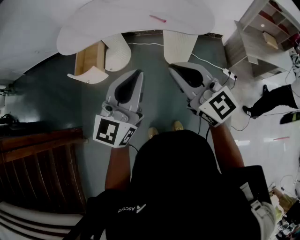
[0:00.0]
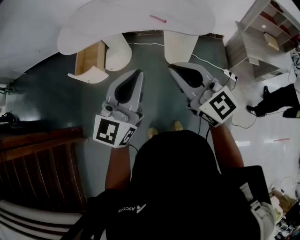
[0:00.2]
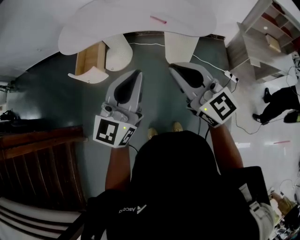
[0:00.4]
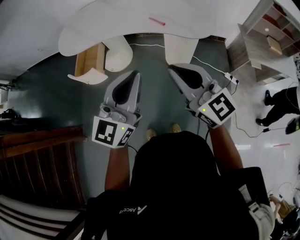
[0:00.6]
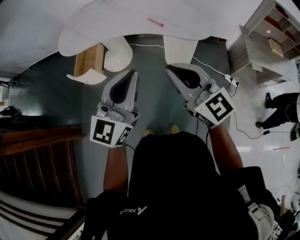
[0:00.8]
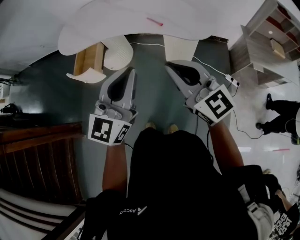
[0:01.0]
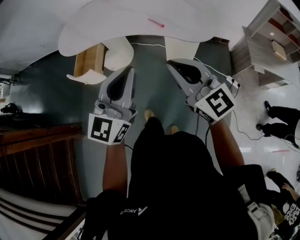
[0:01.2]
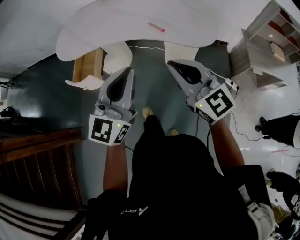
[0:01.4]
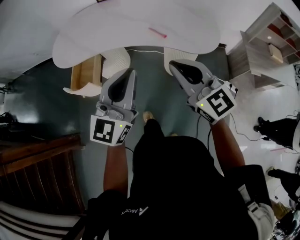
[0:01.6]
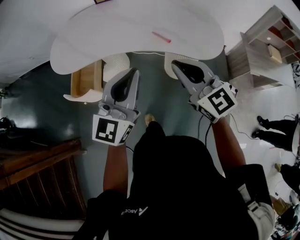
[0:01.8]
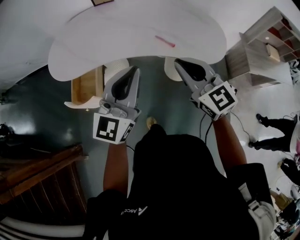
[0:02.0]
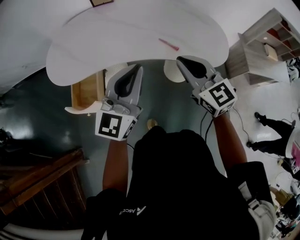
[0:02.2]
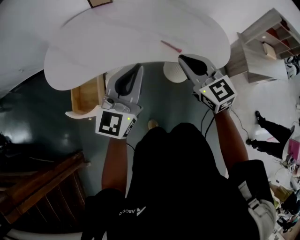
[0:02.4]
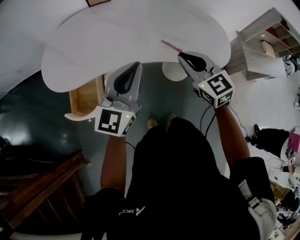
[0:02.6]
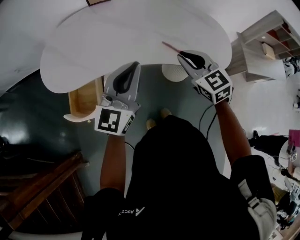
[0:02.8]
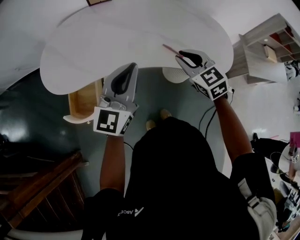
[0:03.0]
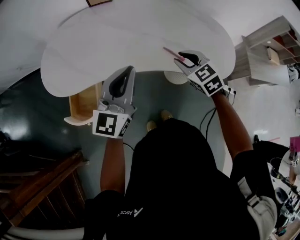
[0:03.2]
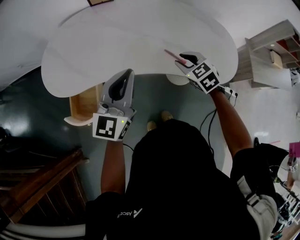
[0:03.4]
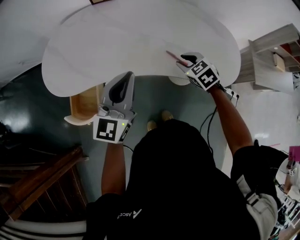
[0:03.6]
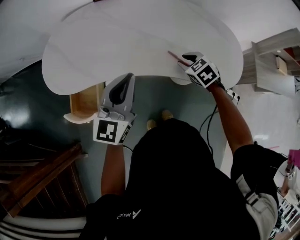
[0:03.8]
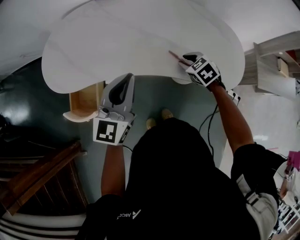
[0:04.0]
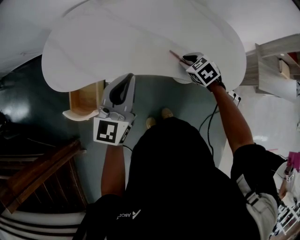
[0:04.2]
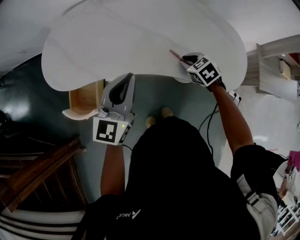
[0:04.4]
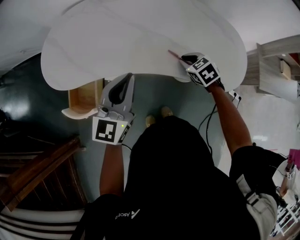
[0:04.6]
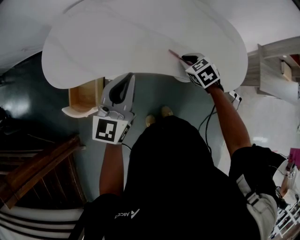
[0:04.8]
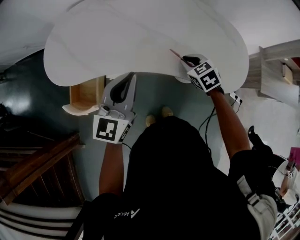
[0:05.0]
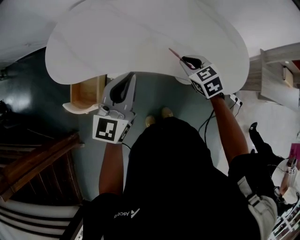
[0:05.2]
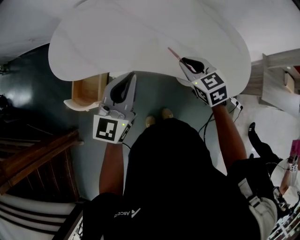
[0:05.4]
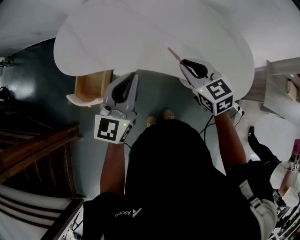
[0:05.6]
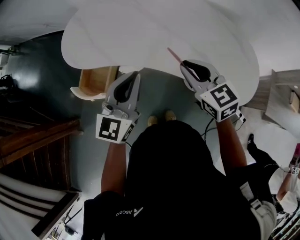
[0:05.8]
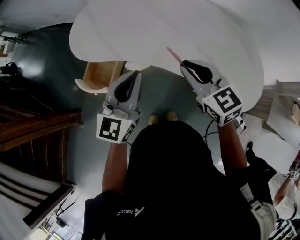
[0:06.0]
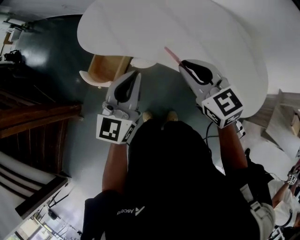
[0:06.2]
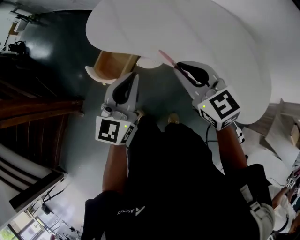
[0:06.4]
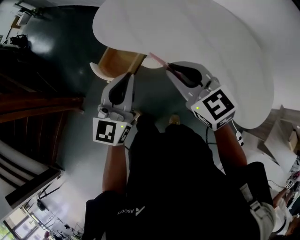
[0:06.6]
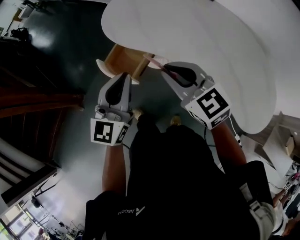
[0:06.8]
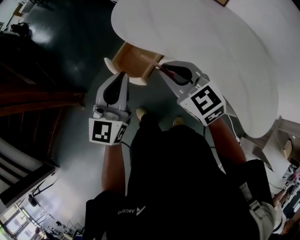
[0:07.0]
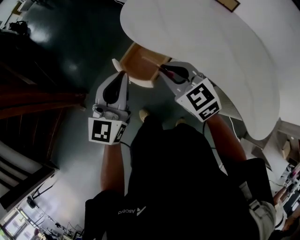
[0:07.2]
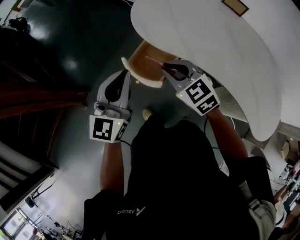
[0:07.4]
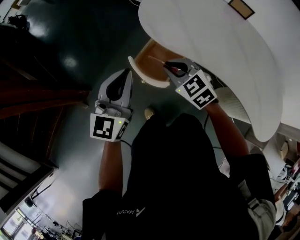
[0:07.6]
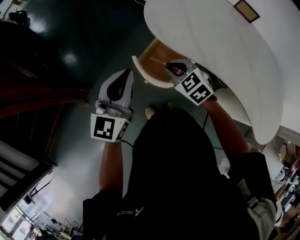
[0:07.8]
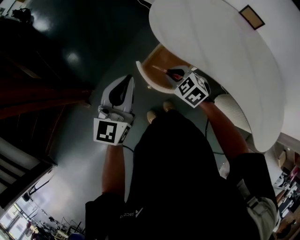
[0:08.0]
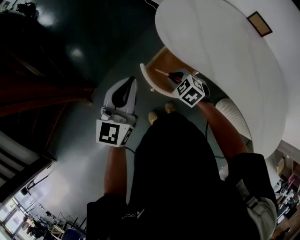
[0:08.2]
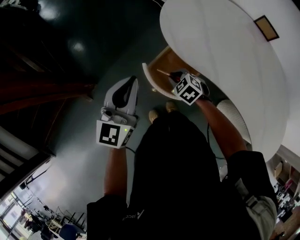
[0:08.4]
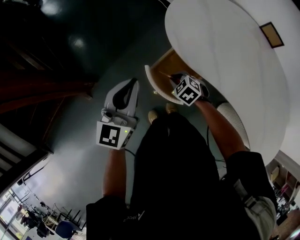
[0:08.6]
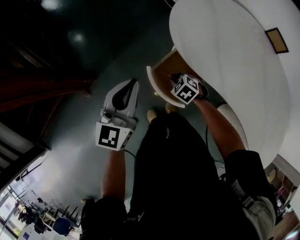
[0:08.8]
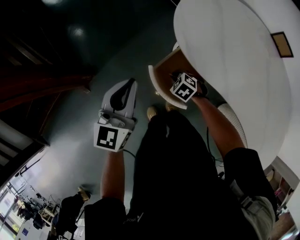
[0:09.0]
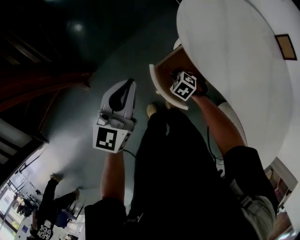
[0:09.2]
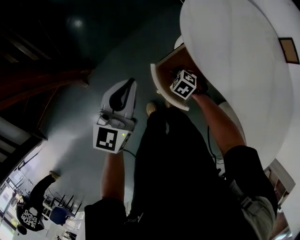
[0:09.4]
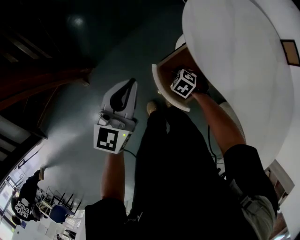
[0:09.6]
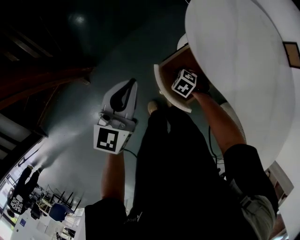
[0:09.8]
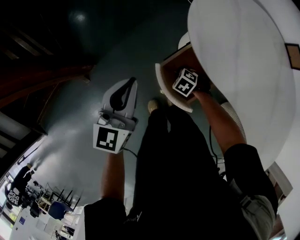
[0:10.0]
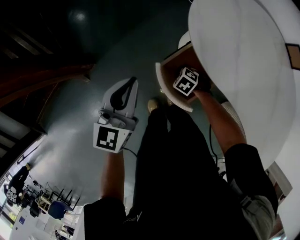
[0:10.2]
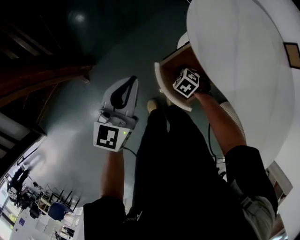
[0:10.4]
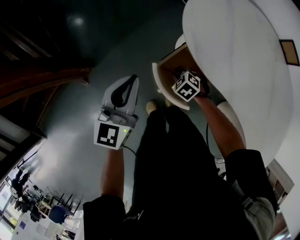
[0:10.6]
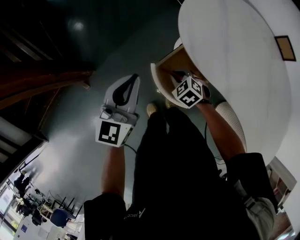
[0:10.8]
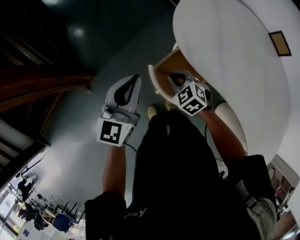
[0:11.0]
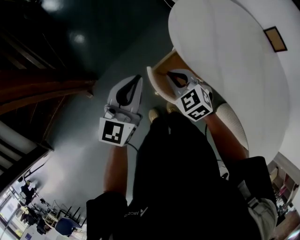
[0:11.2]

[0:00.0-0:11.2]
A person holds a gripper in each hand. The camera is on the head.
0:00.0 to 0:01.6: The grippers both shift forward by roughly 15 cm.
0:01.6 to 0:03.2: The left gripper goes roughly 25 cm forward and to the left. Meanwhile the right gripper moves forward and downward, roughly 35 cm, points its fingers approximately 40 degrees further downward, and opens.
0:03.2 to 0:04.8: The right gripper travels downward and forward by roughly 10 cm.
0:04.8 to 0:06.4: The left gripper ends up approximately 10 cm from where it was, and turns by some 30 degrees. The right gripper moves upward, approximately 20 cm, and angles its fingers upward, by about 40 degrees.
0:06.4 to 0:08.0: The two grippers travel together, to the left and forward, some 40 cm. The right gripper shifts about 20 cm downward, and tilts its fingers some 30 degrees downward.
0:08.0 to 0:09.6: The right gripper shifts about 20 cm downward, and swivels approximately 30 degrees. The left gripper goes some 10 cm forward and downward.
0:09.6 to 0:11.2: The right gripper moves upward, roughly 25 cm, and tips its fingers upward by about 30 degrees; the left gripper goes approximately 5 cm upward.

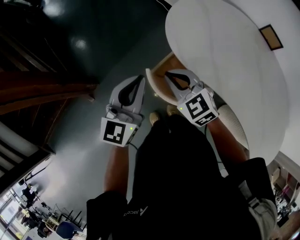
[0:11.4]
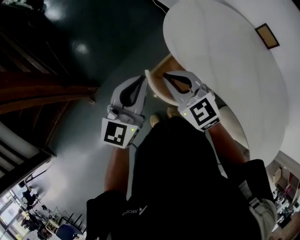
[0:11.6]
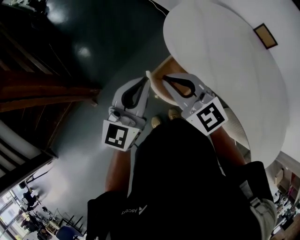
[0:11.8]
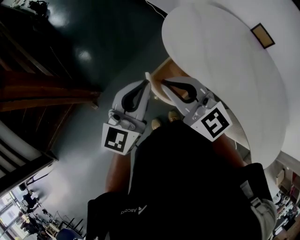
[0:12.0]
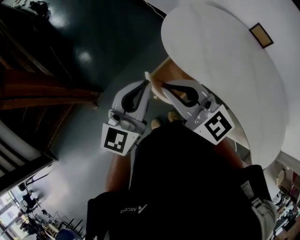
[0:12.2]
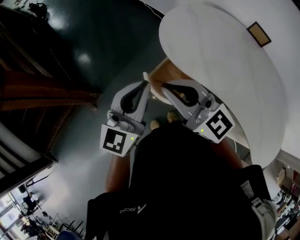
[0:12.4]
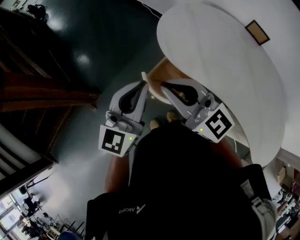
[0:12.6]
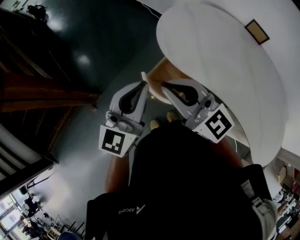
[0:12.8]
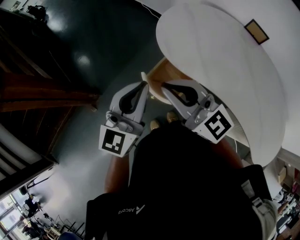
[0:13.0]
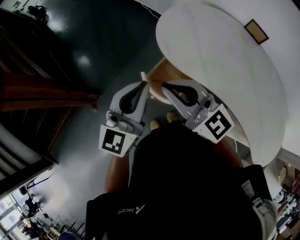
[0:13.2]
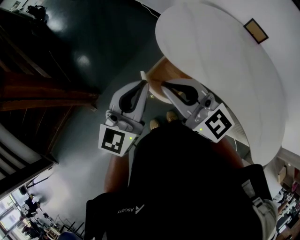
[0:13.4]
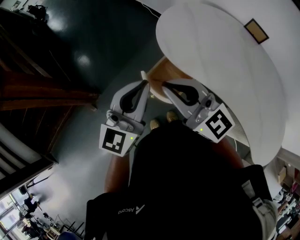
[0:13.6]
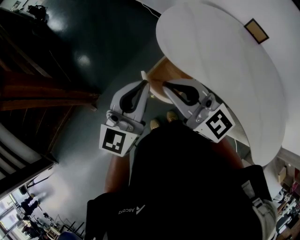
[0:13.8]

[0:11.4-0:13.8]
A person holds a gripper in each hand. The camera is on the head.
0:11.4 to 0:12.6: The left gripper is displaced upward and backward by some 10 cm, while the right gripper is displaced upward and backward by some 20 cm, and angles its fingers upward, by approximately 40 degrees.
0:12.6 to 0:13.8: The two grippers keep their place.

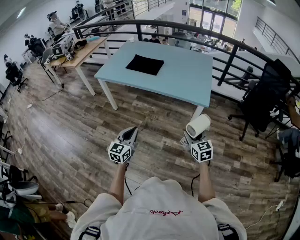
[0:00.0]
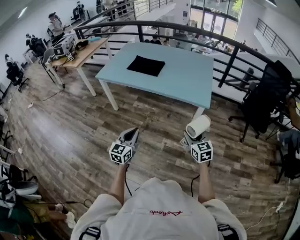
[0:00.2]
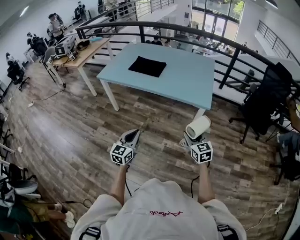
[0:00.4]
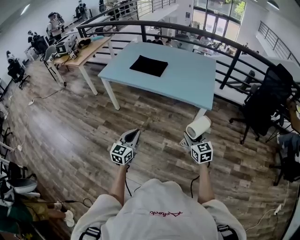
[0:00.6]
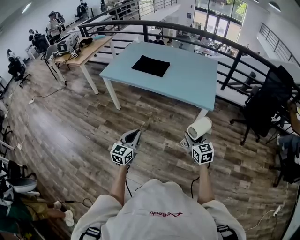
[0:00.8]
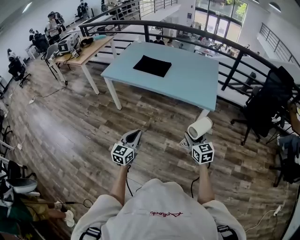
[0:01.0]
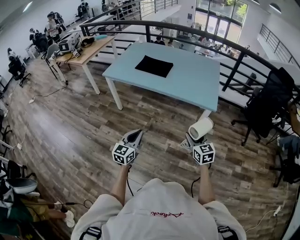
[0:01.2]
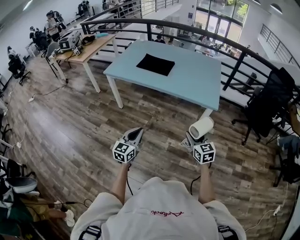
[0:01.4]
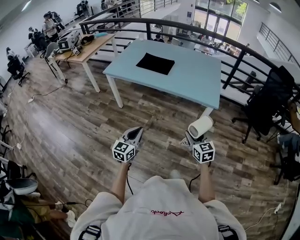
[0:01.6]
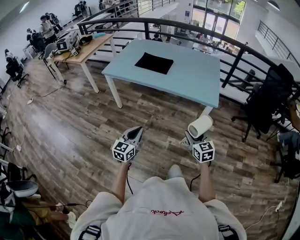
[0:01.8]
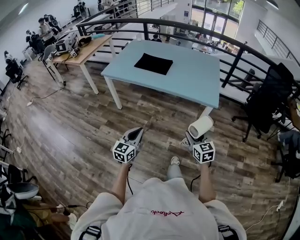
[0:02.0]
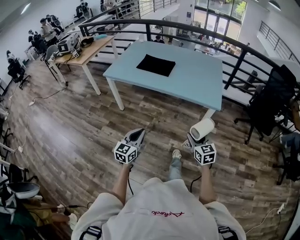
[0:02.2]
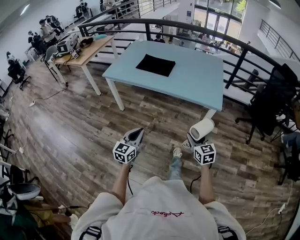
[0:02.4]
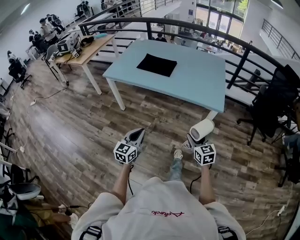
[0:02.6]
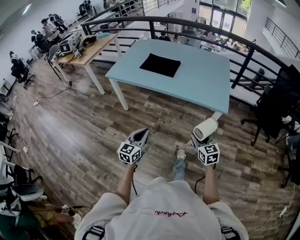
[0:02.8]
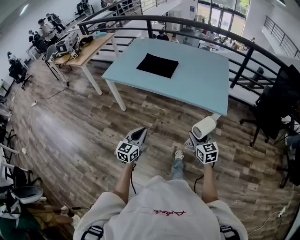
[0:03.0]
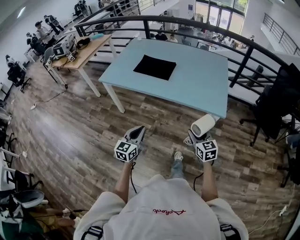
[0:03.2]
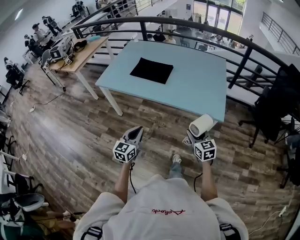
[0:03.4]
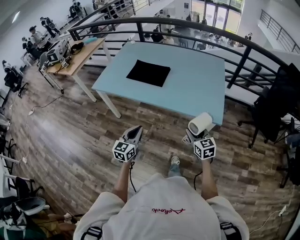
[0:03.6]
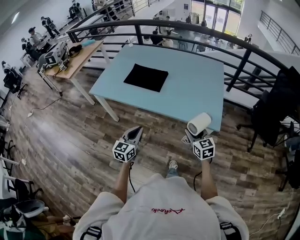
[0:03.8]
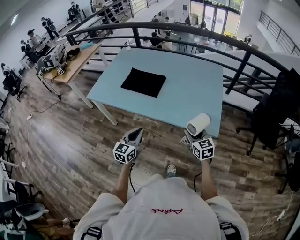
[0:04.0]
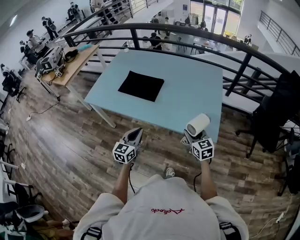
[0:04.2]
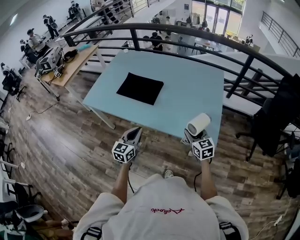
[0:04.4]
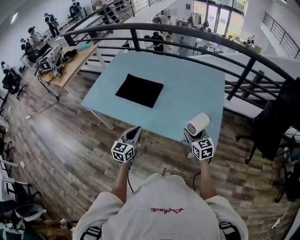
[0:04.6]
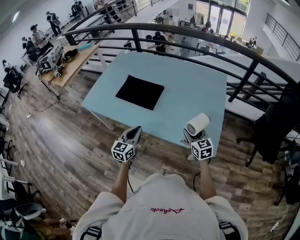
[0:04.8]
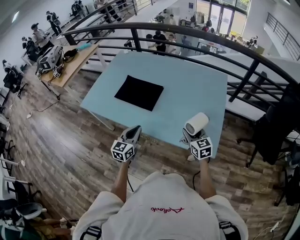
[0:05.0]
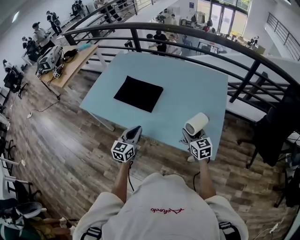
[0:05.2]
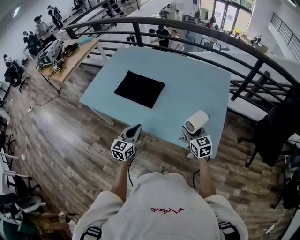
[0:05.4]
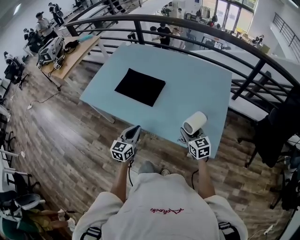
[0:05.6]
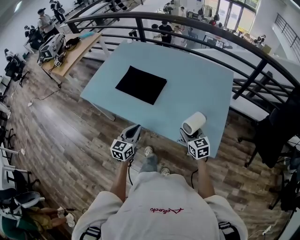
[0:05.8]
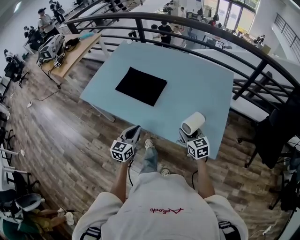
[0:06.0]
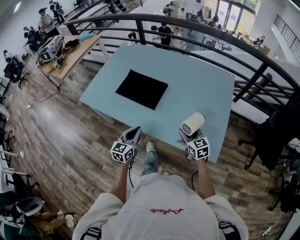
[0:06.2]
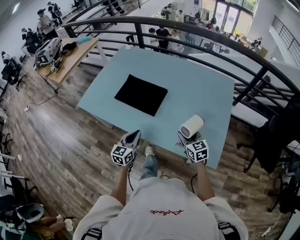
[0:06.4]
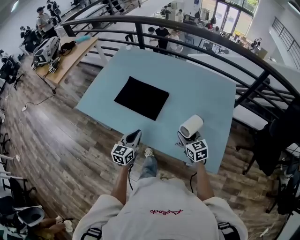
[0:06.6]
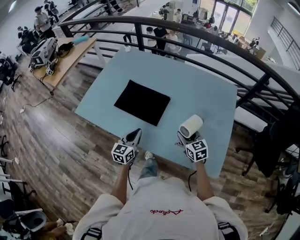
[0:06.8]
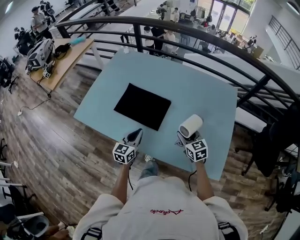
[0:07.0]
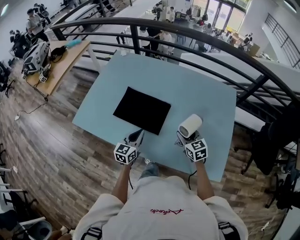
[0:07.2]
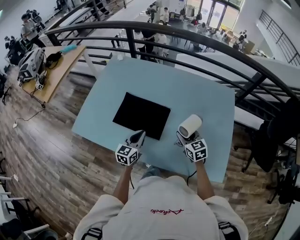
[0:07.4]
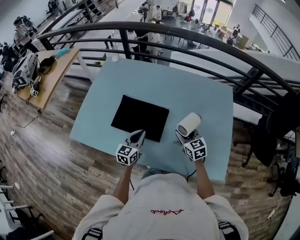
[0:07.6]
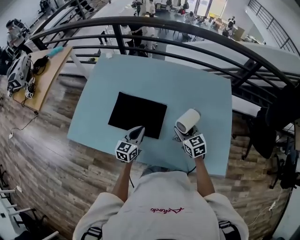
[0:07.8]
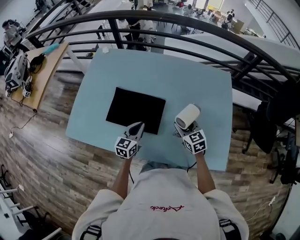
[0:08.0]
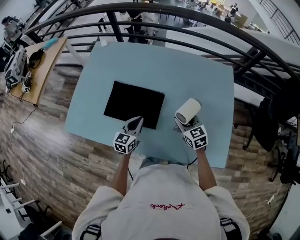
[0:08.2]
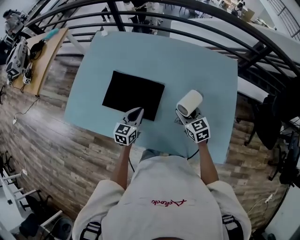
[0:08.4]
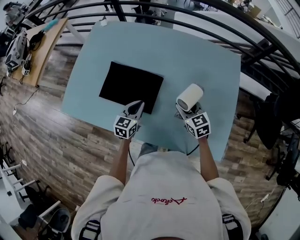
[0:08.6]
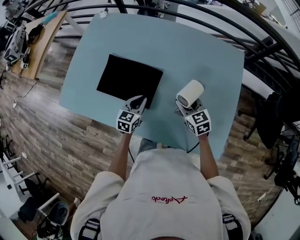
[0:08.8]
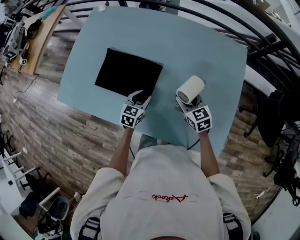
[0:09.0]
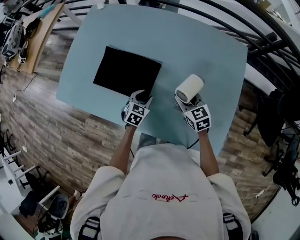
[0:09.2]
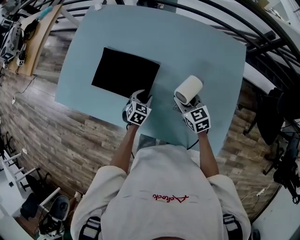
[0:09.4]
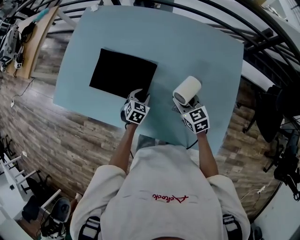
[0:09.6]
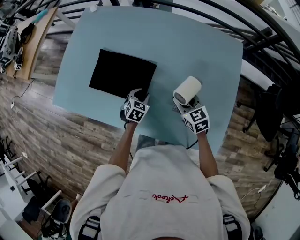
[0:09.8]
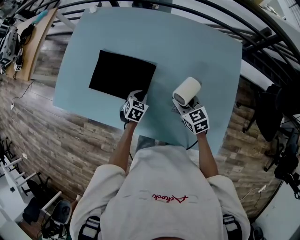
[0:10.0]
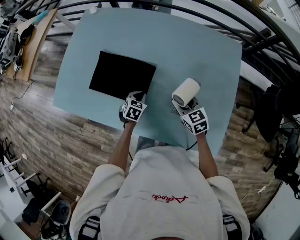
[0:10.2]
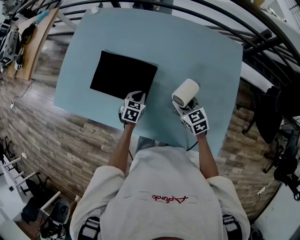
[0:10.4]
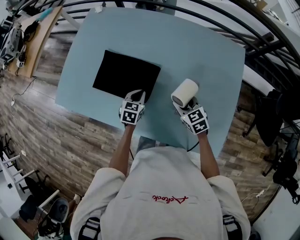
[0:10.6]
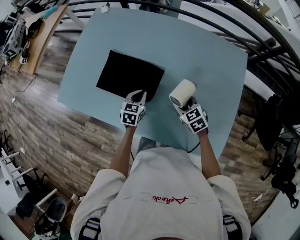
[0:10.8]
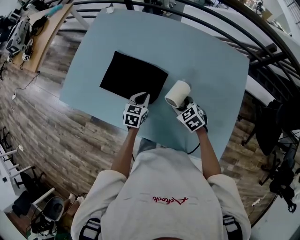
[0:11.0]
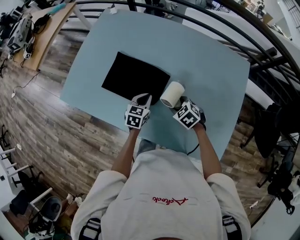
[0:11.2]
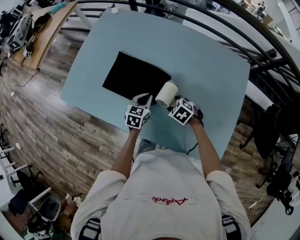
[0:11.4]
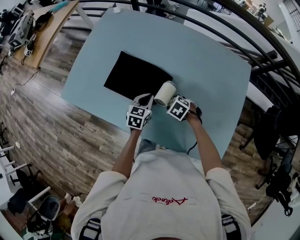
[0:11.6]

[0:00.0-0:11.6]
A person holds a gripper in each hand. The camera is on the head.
0:00.0 to 0:01.4: The grippers both shift to the left by approximately 5 cm.
0:01.4 to 0:02.8: The grippers both shift forward by roughly 10 cm.
0:02.8 to 0:04.4: Both grippers travel together forward, roughly 35 cm.
0:04.4 to 0:05.8: The grippers both shift forward by roughly 5 cm.
0:05.8 to 0:07.2: The right gripper goes approximately 20 cm forward and to the left. The left gripper goes some 20 cm forward.
0:07.2 to 0:08.8: The left gripper shifts roughly 15 cm downward, to the right and forward; the right gripper moves forward, approximately 5 cm.
0:08.8 to 0:10.2: The left gripper is displaced downward by roughly 10 cm, changes its angle by approximately 30 degrees, and opens and closes again.
0:10.2 to 0:11.6: The right gripper goes some 15 cm to the left and downward, and tips its fingers downward by approximately 40 degrees. Meanwhile the left gripper goes approximately 10 cm upward, and rotates roughly 20 degrees.
